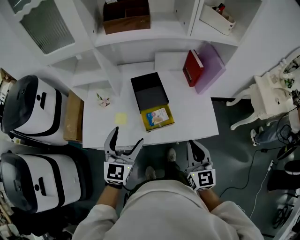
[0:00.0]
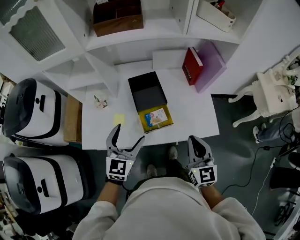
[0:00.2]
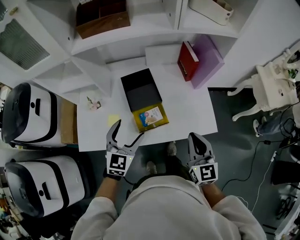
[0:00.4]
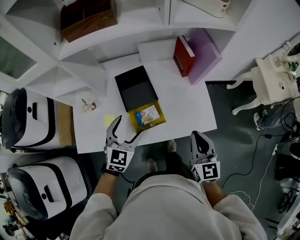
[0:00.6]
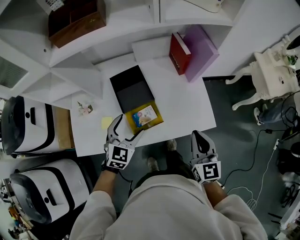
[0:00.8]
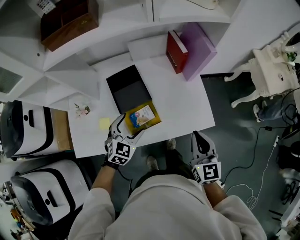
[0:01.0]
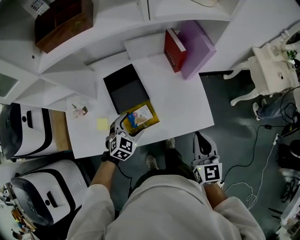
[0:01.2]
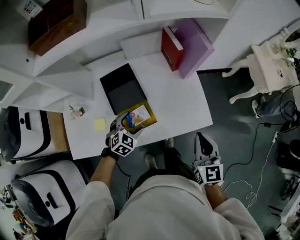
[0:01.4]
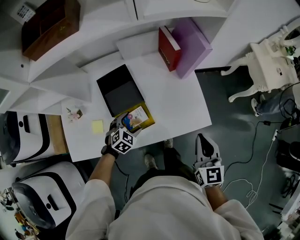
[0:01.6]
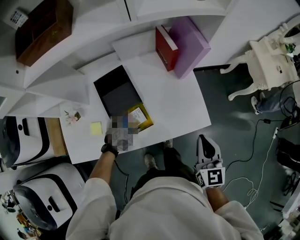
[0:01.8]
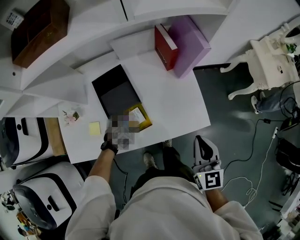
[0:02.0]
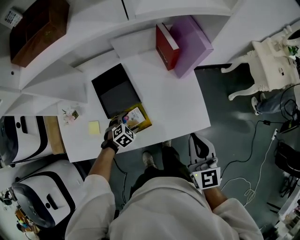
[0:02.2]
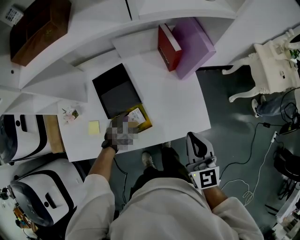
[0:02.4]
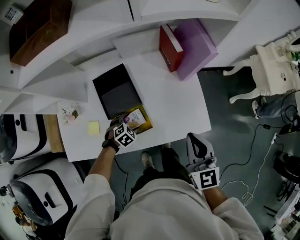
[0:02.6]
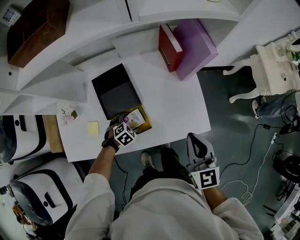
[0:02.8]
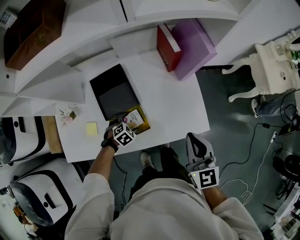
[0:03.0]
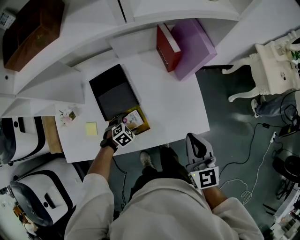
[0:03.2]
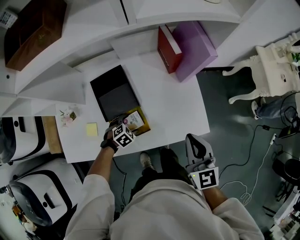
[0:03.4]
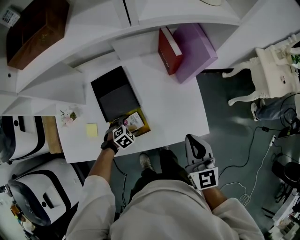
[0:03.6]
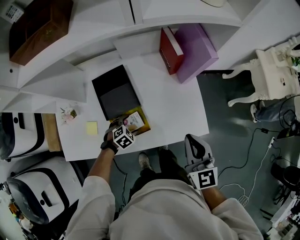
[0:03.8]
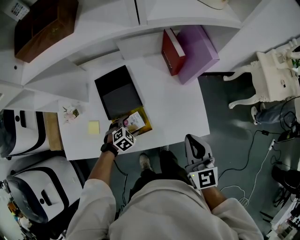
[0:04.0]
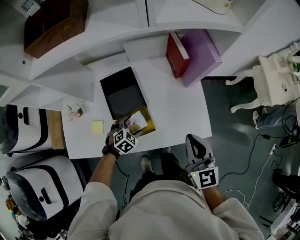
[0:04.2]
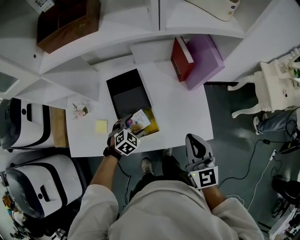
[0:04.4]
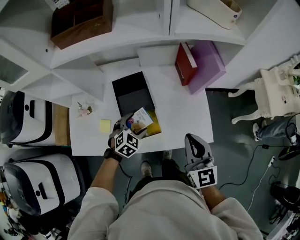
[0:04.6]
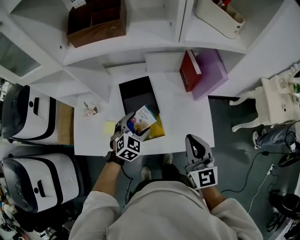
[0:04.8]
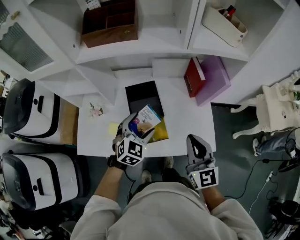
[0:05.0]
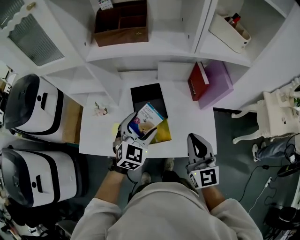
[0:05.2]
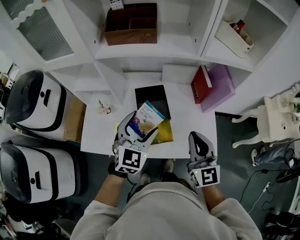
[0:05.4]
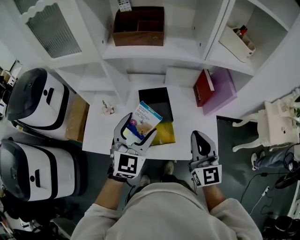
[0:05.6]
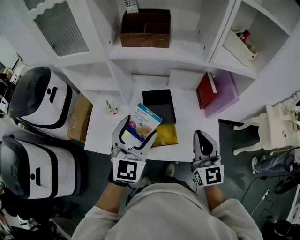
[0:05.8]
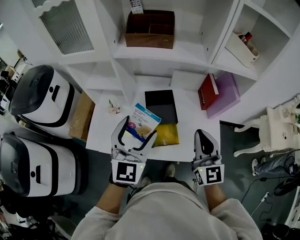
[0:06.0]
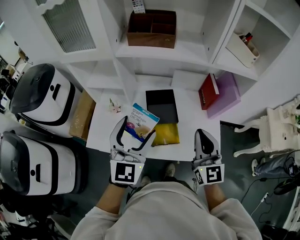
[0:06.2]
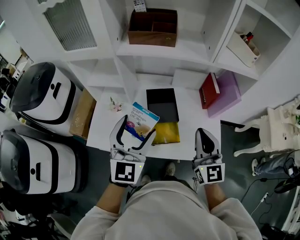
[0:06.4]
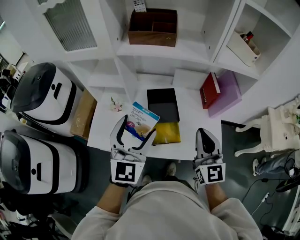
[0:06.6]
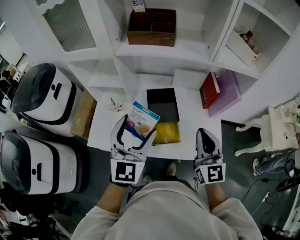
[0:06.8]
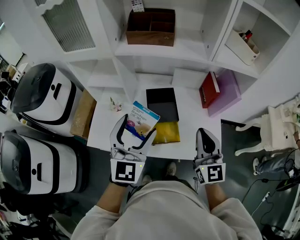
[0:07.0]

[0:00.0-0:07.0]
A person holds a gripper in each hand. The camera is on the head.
0:00.0 to 0:01.4: The right gripper heads to the right, forward and downward, covering some 20 cm; the left gripper travels downward, forward and to the right by about 30 cm, and tips its fingers downward by approximately 40 degrees.
0:01.4 to 0:02.8: The left gripper travels downward by about 15 cm, and turns by some 20 degrees, while the right gripper changes place by some 5 cm.
0:02.8 to 0:04.2: The left gripper is displaced upward by some 5 cm.
0:04.2 to 0:05.6: The right gripper shifts some 20 cm upward and to the left, while the left gripper shifts some 40 cm upward, and tips its fingers upward by roughly 50 degrees.
0:05.6 to 0:07.0: The left gripper ends up approximately 5 cm from where it was.

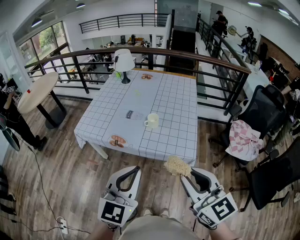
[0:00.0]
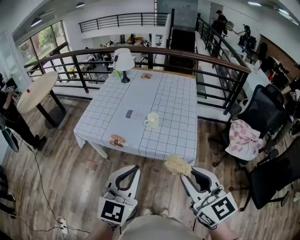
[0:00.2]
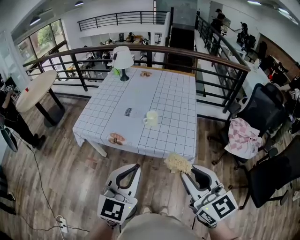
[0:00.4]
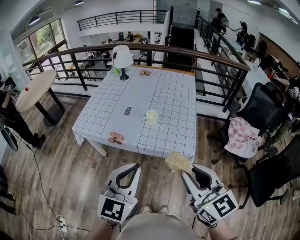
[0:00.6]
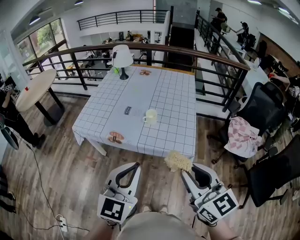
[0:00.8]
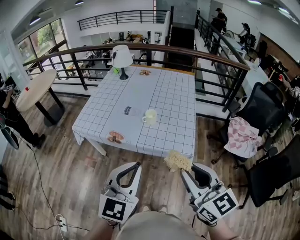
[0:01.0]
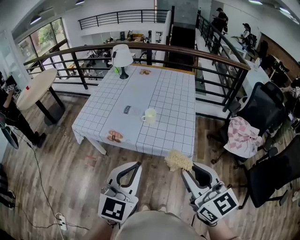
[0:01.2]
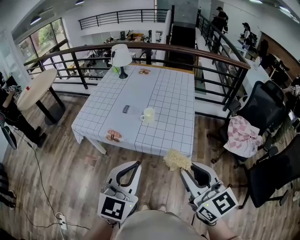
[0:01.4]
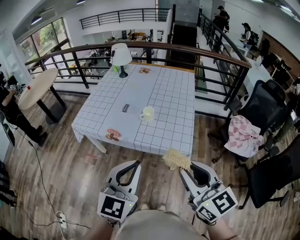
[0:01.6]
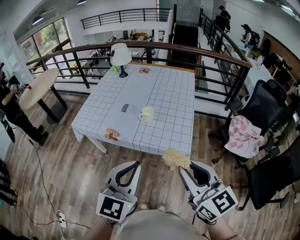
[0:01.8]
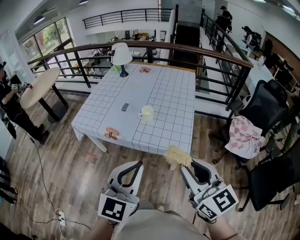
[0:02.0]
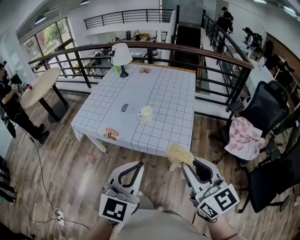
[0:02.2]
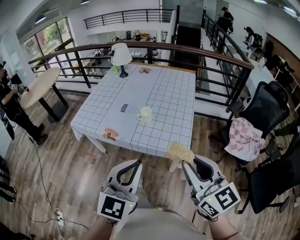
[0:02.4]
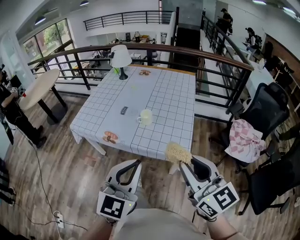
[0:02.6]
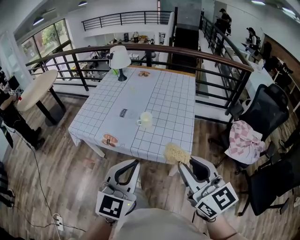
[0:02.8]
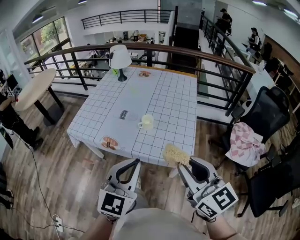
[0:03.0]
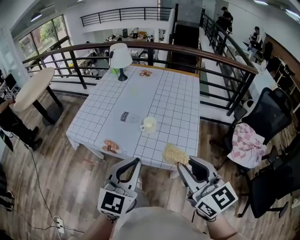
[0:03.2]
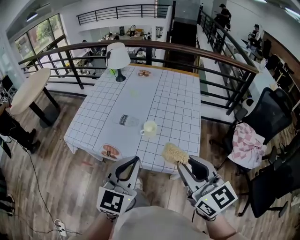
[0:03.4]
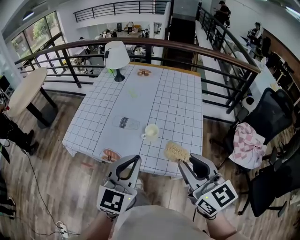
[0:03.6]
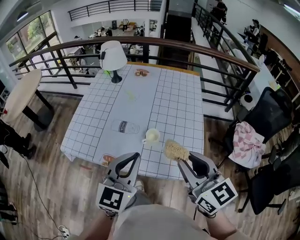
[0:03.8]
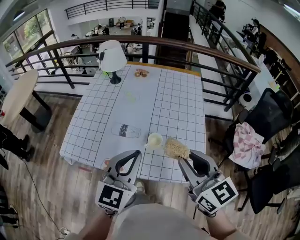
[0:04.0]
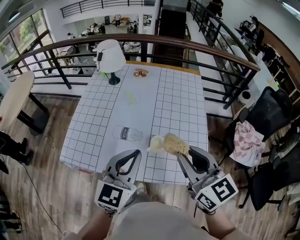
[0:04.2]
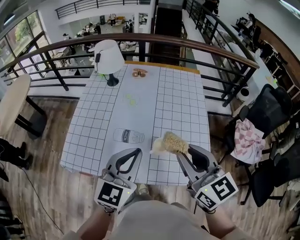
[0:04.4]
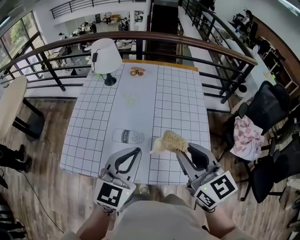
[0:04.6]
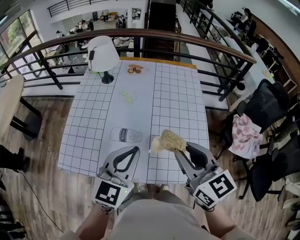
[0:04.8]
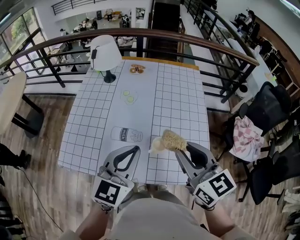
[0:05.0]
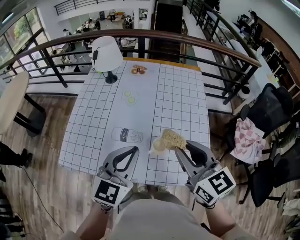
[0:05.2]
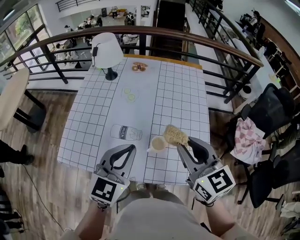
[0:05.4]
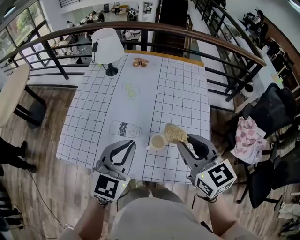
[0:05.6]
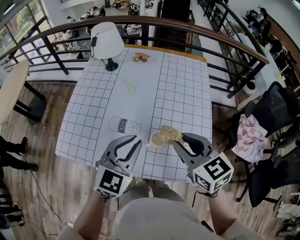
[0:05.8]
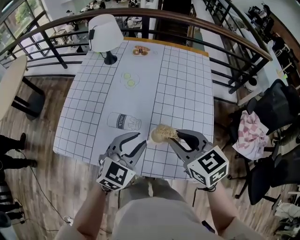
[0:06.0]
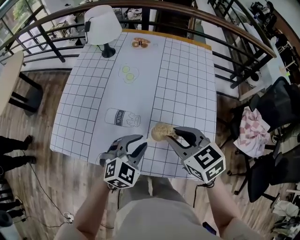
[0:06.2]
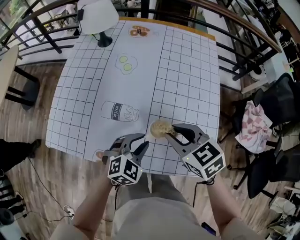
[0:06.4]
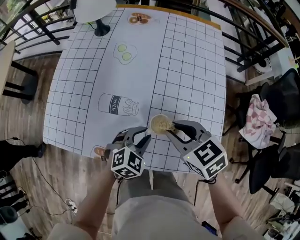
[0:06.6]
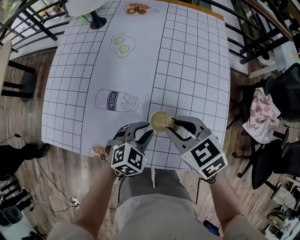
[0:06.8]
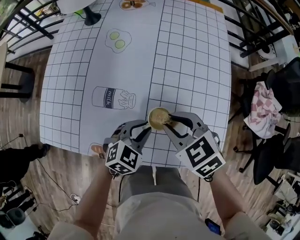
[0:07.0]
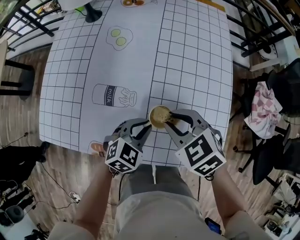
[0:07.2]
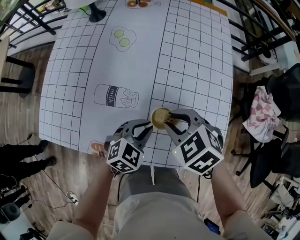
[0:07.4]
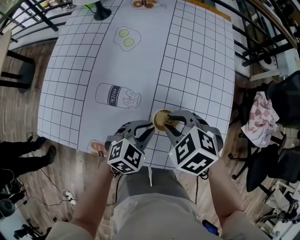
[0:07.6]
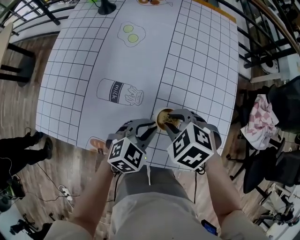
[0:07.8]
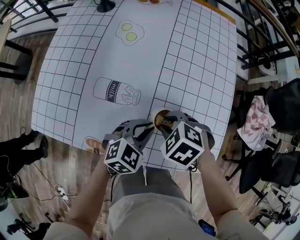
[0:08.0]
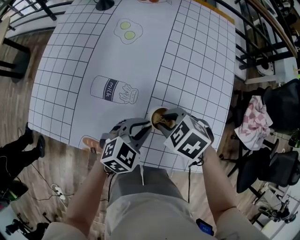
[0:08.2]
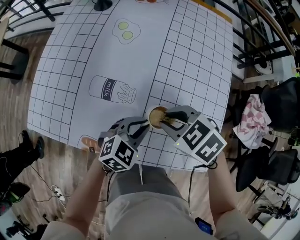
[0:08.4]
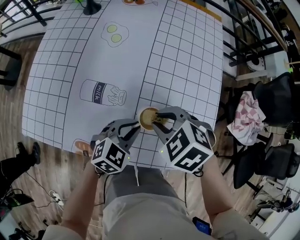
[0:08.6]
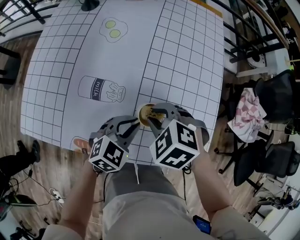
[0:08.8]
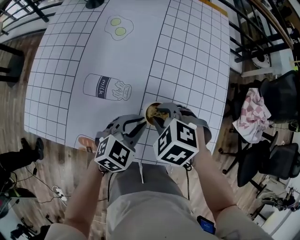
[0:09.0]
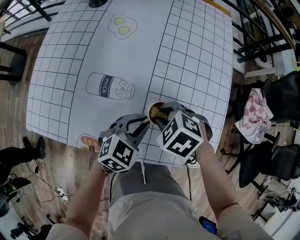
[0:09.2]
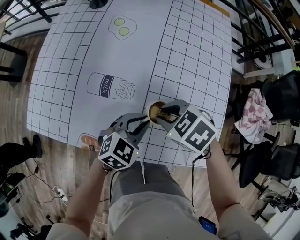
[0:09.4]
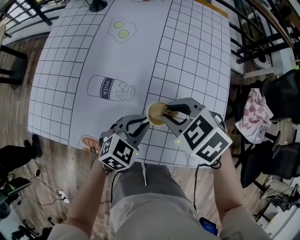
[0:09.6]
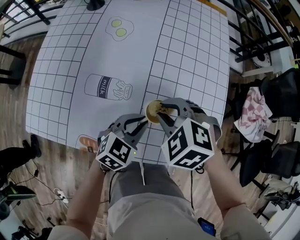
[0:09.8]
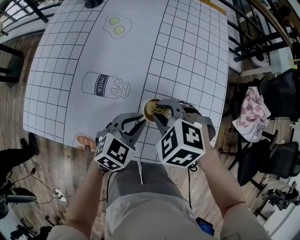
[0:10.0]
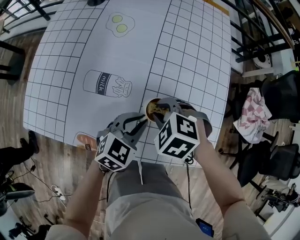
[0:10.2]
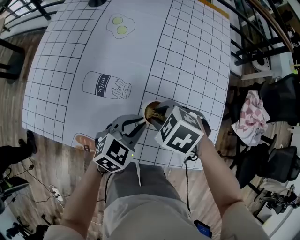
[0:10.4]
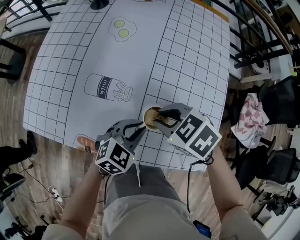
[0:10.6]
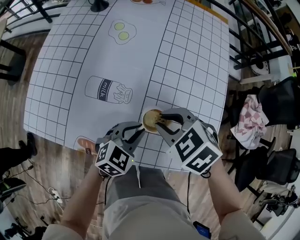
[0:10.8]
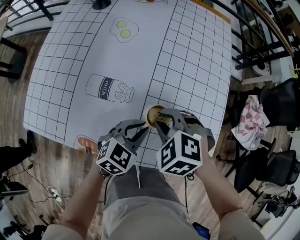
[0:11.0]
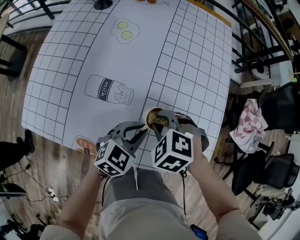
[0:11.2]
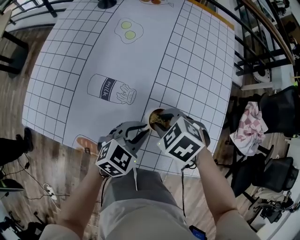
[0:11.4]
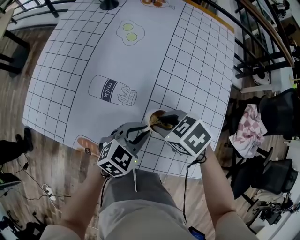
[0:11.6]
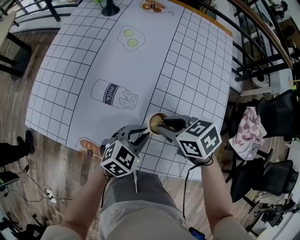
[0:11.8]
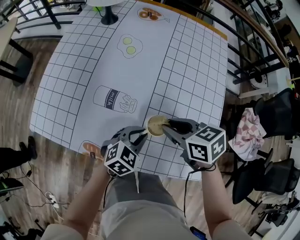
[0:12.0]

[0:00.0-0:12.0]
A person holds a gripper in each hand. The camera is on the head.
0:00.0 to 0:01.6: The grippers stay close to where they were, moving slightly.
0:01.6 to 0:03.0: The grippers both shift forward by approximately 10 cm.
0:03.0 to 0:04.4: The right gripper is displaced forward and to the left by about 30 cm, while the left gripper goes roughly 30 cm forward.
0:04.4 to 0:06.0: The two grippers go about 15 cm downward and forward. The right gripper rotates about 30 degrees; the left gripper rotates about 20 degrees, and opens its fingers.
0:06.0 to 0:07.6: Both grippers travel together downward, approximately 20 cm. The left gripper rotates some 20 degrees, while the right gripper points its fingers approximately 30 degrees further downward.
0:07.6 to 0:09.0: The right gripper moves up and down over roughly 5 cm, changing direction 2 times.
0:09.0 to 0:10.4: The right gripper moves approximately 5 cm upward and comes back.
0:10.4 to 0:12.0: The right gripper moves up and down over some 5 cm, changing direction 2 times, and changes its angle by roughly 40 degrees.

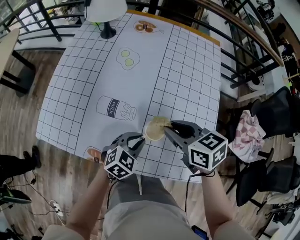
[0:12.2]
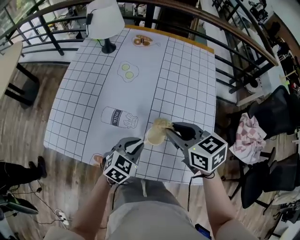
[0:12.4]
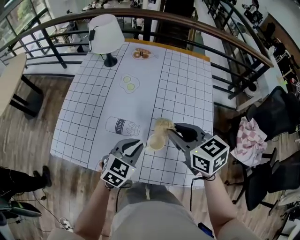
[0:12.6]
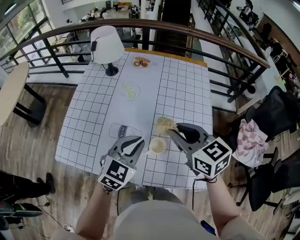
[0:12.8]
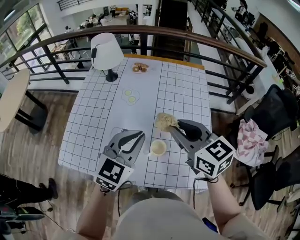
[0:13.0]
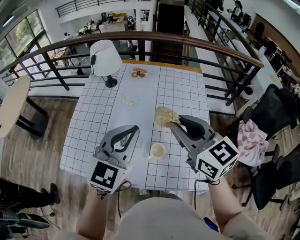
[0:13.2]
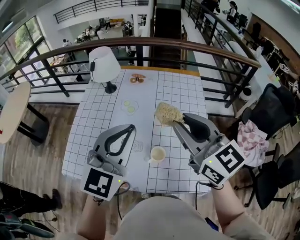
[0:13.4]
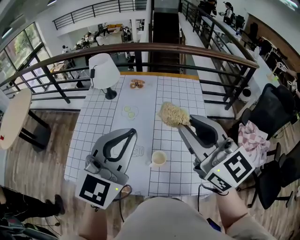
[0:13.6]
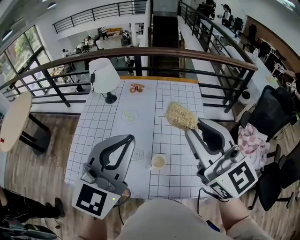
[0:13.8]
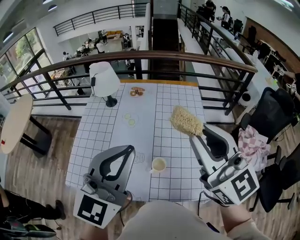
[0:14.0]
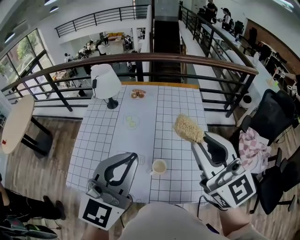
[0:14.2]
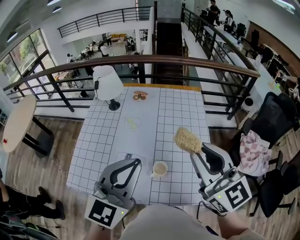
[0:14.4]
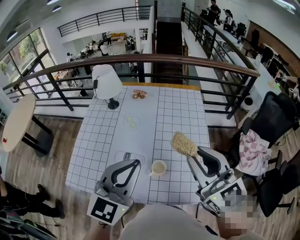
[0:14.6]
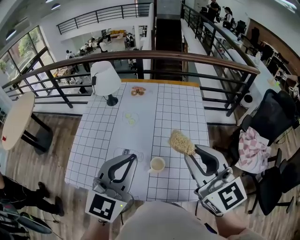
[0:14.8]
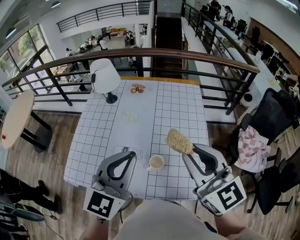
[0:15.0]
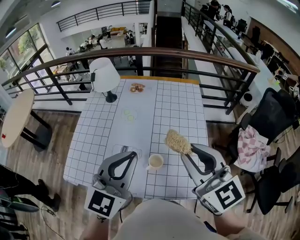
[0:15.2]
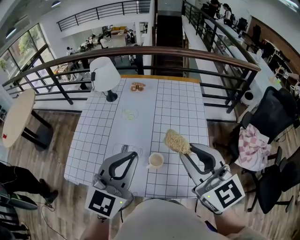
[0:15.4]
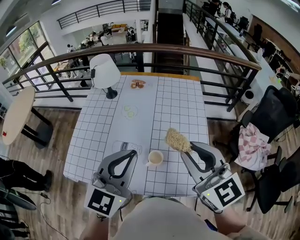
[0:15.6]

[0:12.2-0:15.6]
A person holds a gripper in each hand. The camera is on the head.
0:12.2 to 0:13.8: Both grippers travel together upward, approximately 40 cm. The right gripper tilts its fingers approximately 40 degrees upward; the left gripper points its fingers roughly 40 degrees further upward.
0:13.8 to 0:15.6: Both grippers travel together downward, about 10 cm.

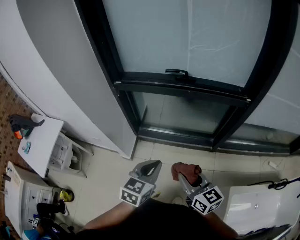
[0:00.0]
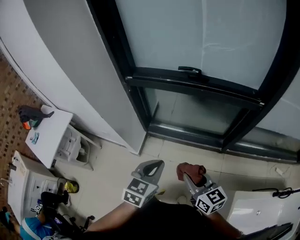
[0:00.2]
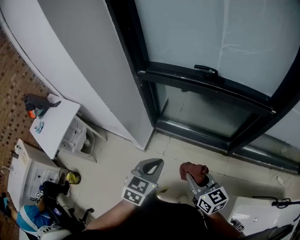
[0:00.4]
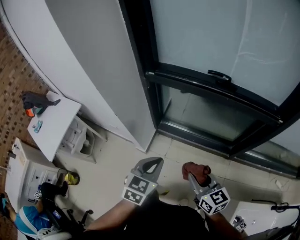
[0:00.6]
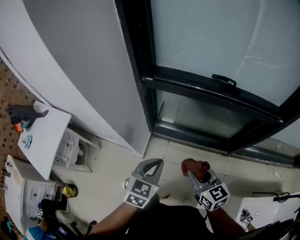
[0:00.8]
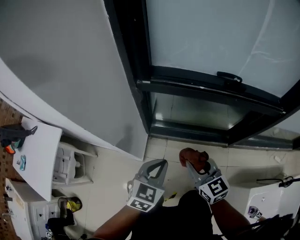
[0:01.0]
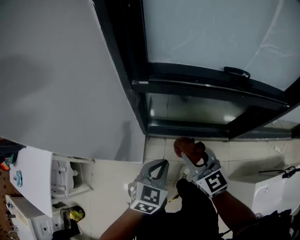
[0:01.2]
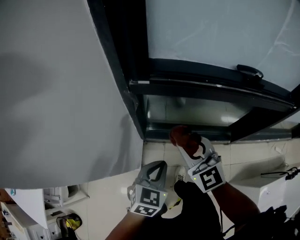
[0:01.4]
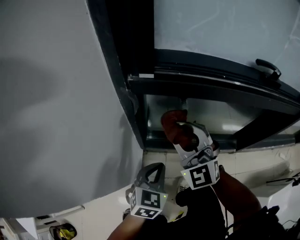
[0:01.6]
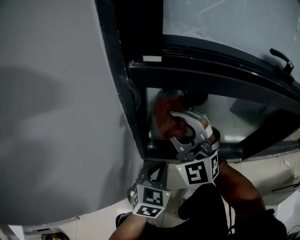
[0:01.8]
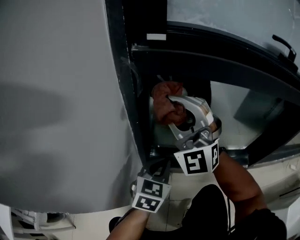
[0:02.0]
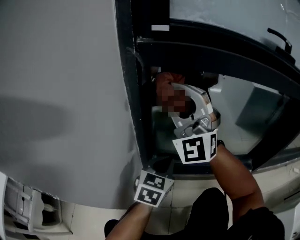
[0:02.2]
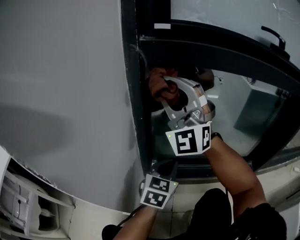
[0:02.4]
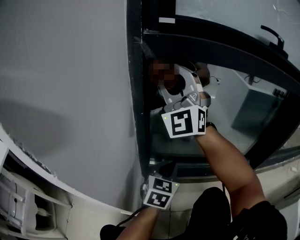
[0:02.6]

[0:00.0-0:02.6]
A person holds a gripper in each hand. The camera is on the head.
0:00.0 to 0:01.2: The right gripper shifts some 35 cm forward and to the left, and swivels about 30 degrees; the left gripper is displaced forward, to the left and downward by about 30 cm.
0:01.2 to 0:02.6: The left gripper shifts about 40 cm downward and forward; the right gripper moves forward and to the left, roughly 30 cm, and angles its fingers upward, by approximately 40 degrees.
